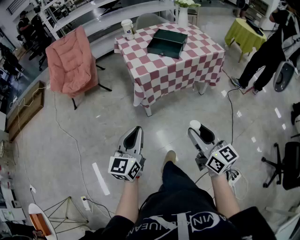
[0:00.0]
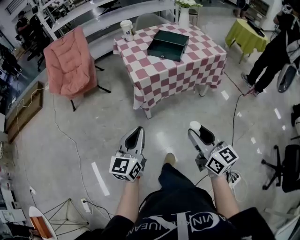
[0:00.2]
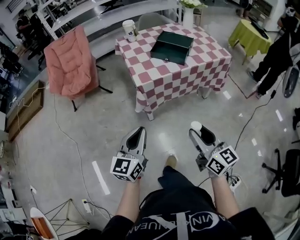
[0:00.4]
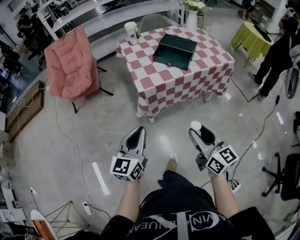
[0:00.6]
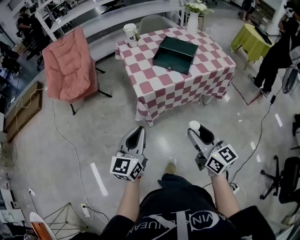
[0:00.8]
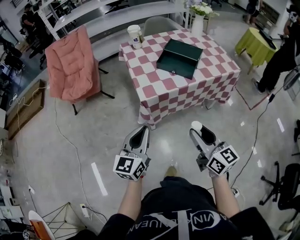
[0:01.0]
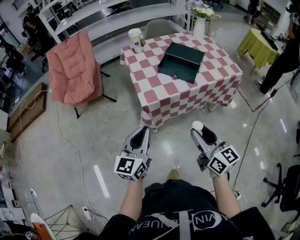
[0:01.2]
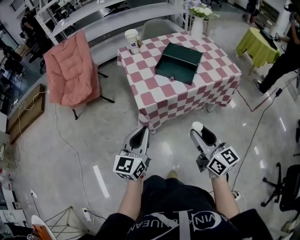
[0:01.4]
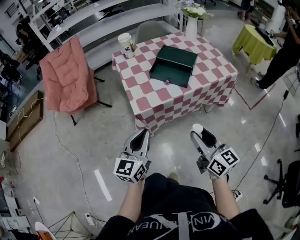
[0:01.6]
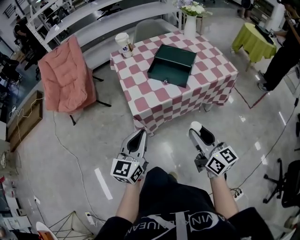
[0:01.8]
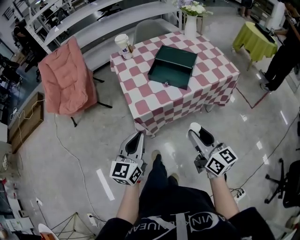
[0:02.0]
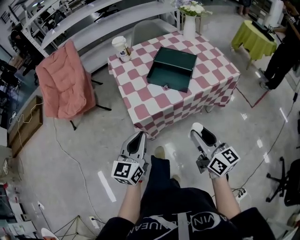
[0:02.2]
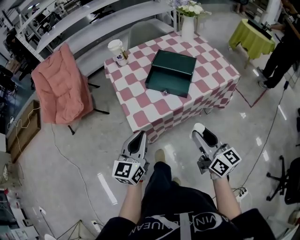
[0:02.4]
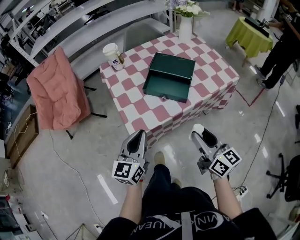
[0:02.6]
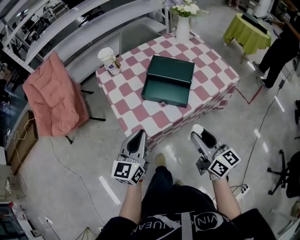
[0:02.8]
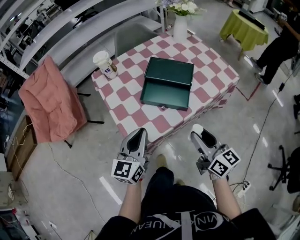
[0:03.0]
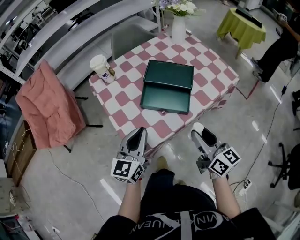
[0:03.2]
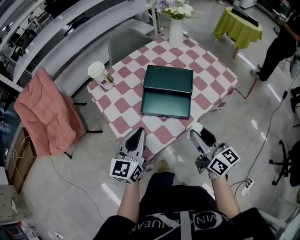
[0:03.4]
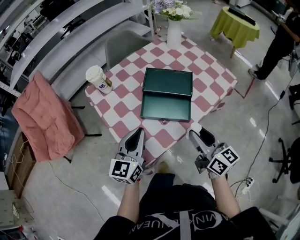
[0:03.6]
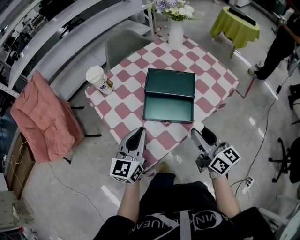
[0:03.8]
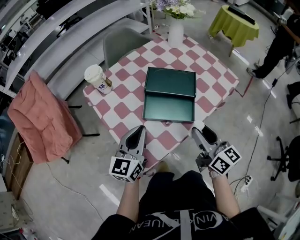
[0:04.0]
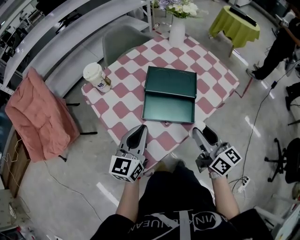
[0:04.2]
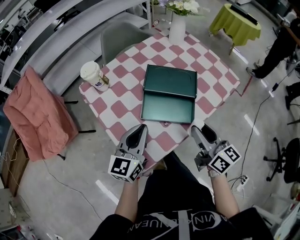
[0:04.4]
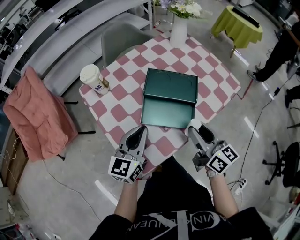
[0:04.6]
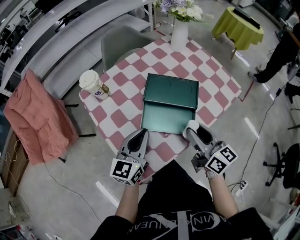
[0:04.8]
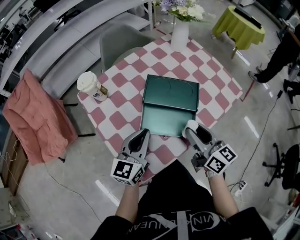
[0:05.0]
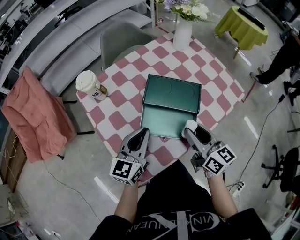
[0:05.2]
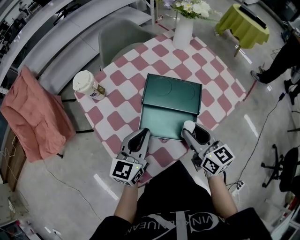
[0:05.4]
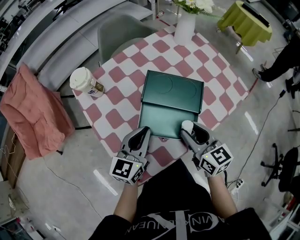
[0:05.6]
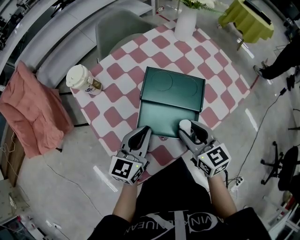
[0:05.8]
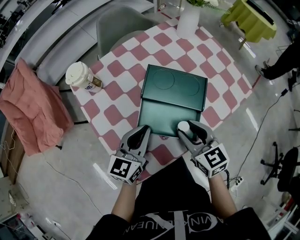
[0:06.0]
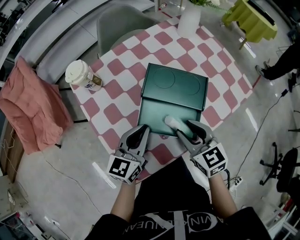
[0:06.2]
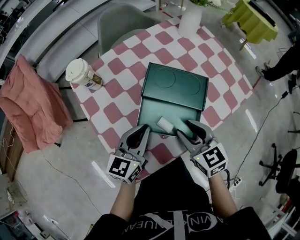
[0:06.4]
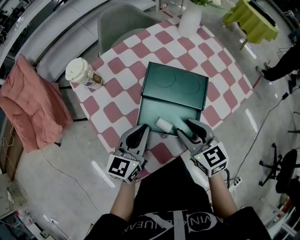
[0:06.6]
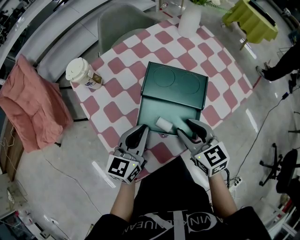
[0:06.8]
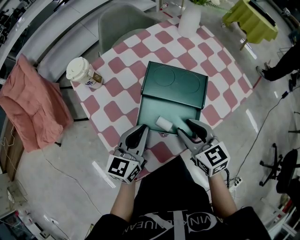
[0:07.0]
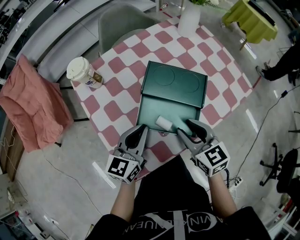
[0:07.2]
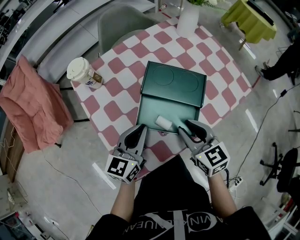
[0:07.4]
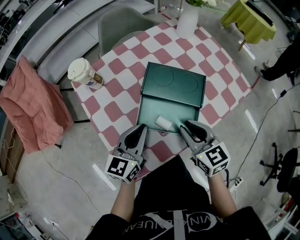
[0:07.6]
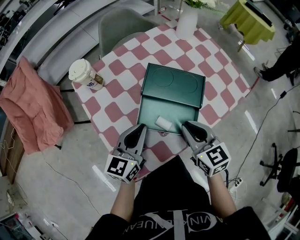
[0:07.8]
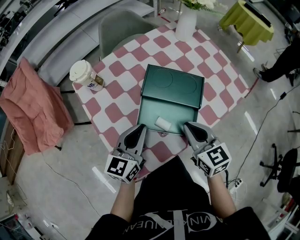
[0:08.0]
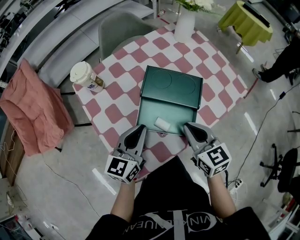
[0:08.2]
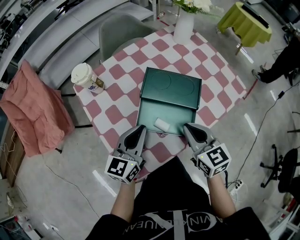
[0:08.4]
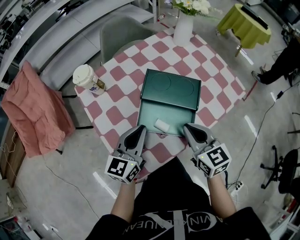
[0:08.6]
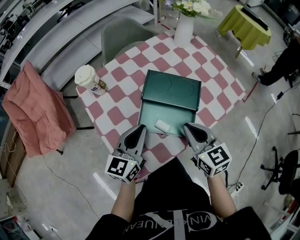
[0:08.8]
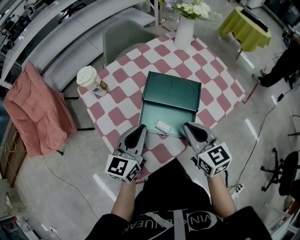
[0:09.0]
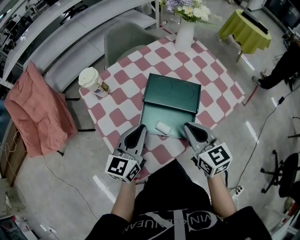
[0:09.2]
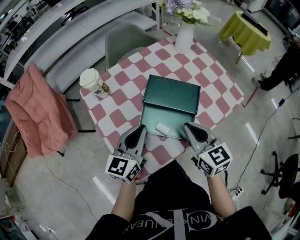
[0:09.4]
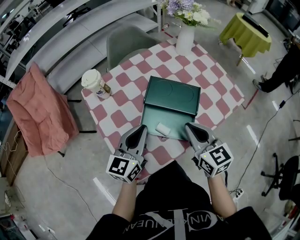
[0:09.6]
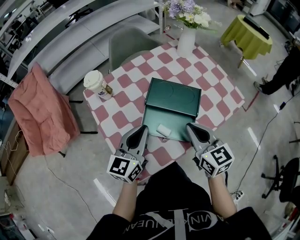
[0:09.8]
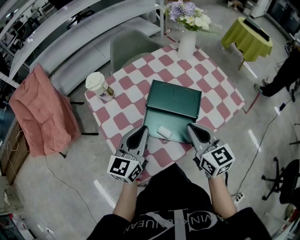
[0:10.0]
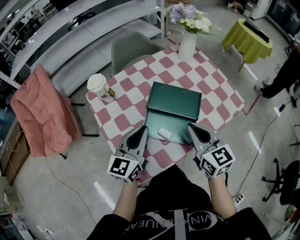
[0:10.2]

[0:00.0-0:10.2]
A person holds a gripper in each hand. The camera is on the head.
0:00.0 to 0:01.4: The grippers both shift forward by some 20 cm.
0:01.4 to 0:03.0: The two grippers go about 20 cm forward.
0:03.0 to 0:04.4: The two grippers go roughly 10 cm forward.
0:04.4 to 0:05.8: The left gripper moves forward, approximately 5 cm. The right gripper travels forward and downward by roughly 10 cm, and turns by about 30 degrees.
0:05.8 to 0:07.2: There are only small adjustments of the grippers.
0:07.2 to 0:08.8: The right gripper closes up.
0:08.8 to 0:10.2: The right gripper goes roughly 5 cm upward.

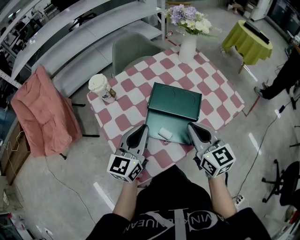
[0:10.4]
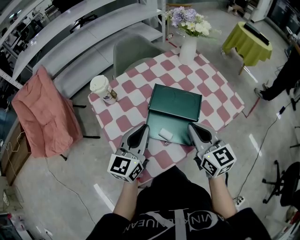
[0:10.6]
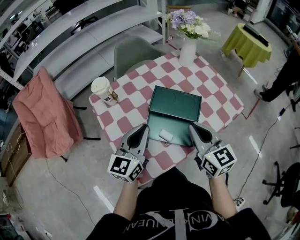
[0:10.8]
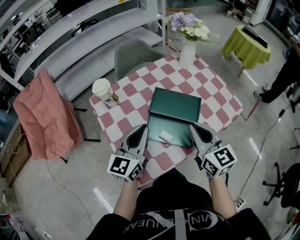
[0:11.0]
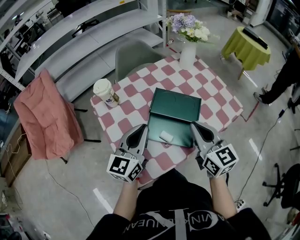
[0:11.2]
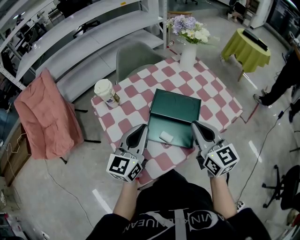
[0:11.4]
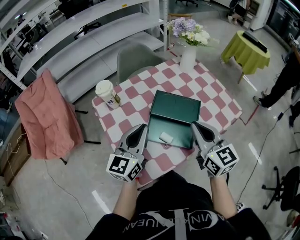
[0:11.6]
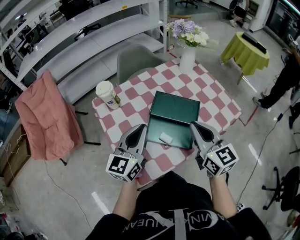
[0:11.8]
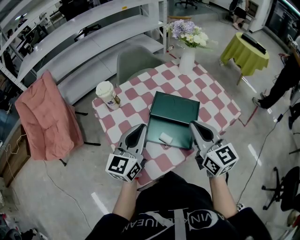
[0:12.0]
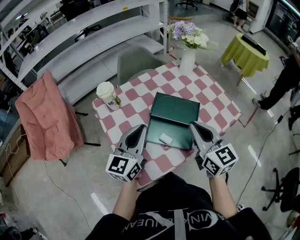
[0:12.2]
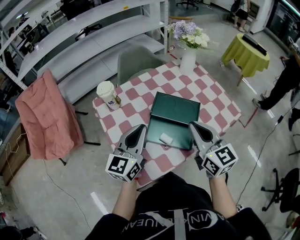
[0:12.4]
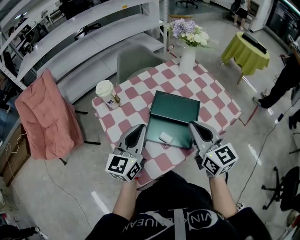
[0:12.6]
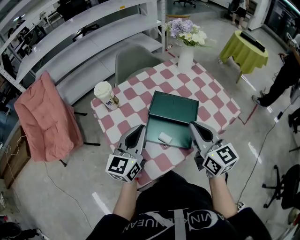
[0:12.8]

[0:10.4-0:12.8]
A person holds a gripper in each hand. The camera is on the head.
0:10.4 to 0:11.6: The grippers move only a little.
0:11.6 to 0:12.8: The two grippers keep their place.

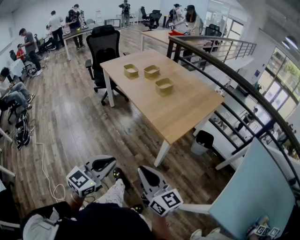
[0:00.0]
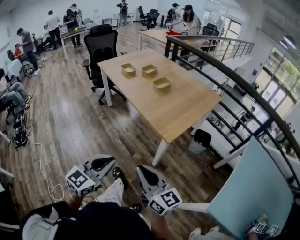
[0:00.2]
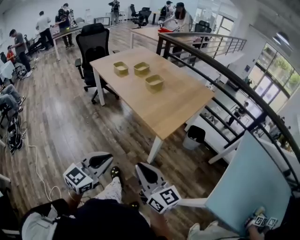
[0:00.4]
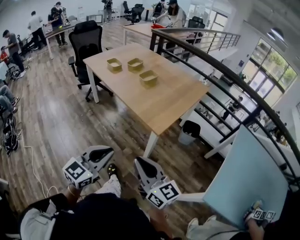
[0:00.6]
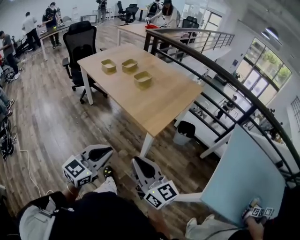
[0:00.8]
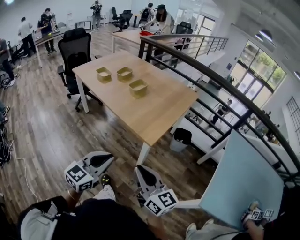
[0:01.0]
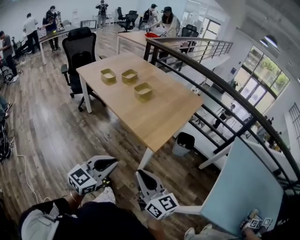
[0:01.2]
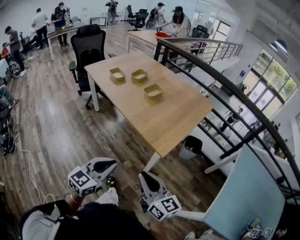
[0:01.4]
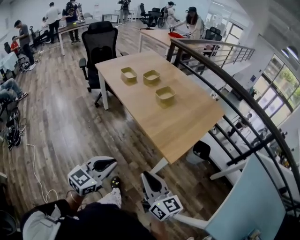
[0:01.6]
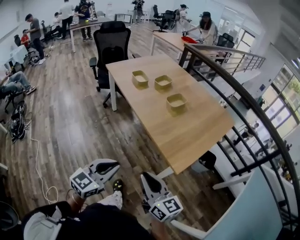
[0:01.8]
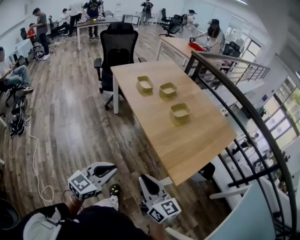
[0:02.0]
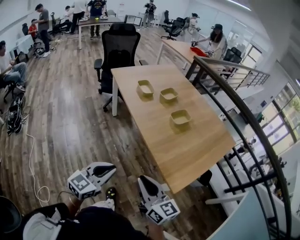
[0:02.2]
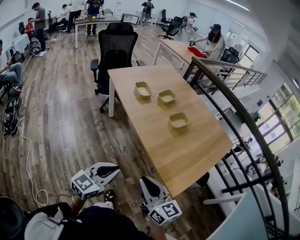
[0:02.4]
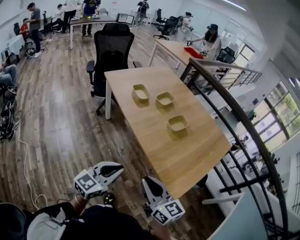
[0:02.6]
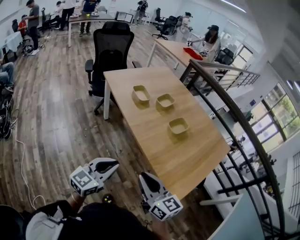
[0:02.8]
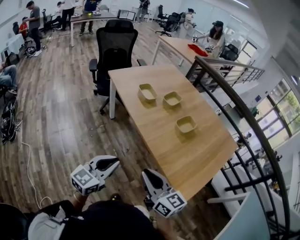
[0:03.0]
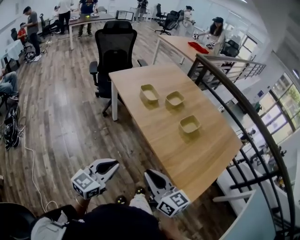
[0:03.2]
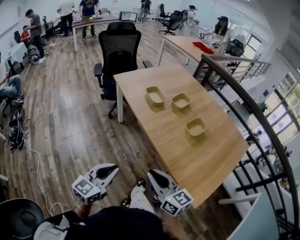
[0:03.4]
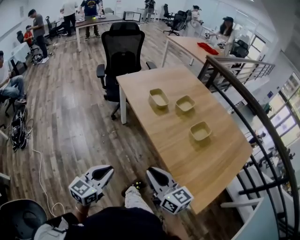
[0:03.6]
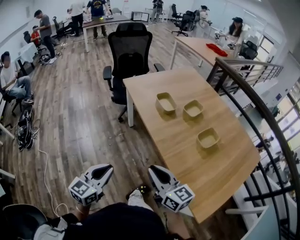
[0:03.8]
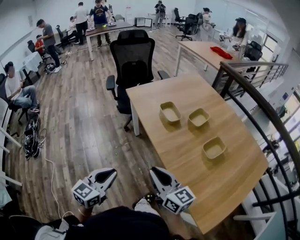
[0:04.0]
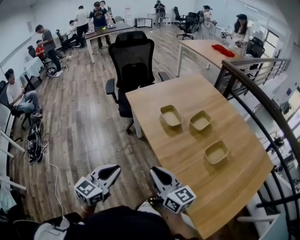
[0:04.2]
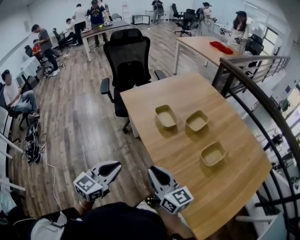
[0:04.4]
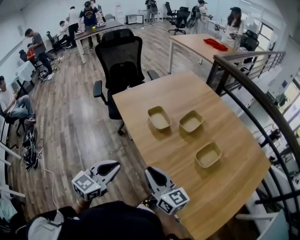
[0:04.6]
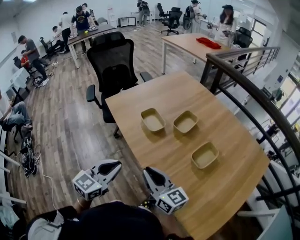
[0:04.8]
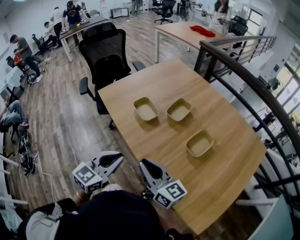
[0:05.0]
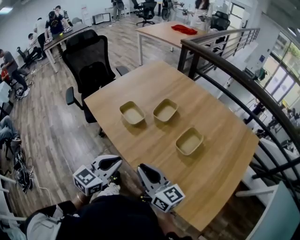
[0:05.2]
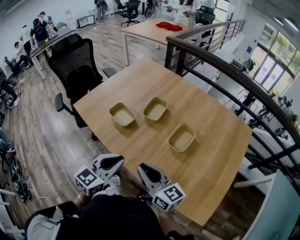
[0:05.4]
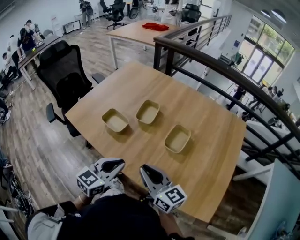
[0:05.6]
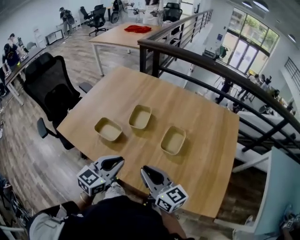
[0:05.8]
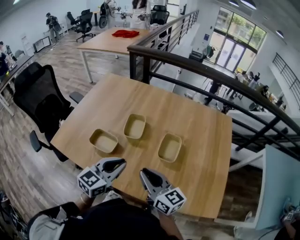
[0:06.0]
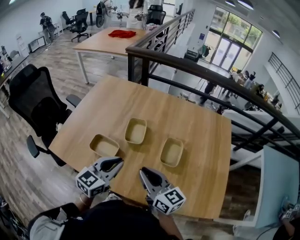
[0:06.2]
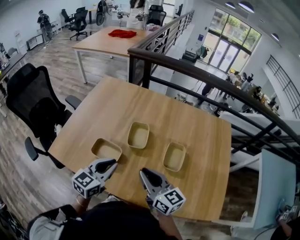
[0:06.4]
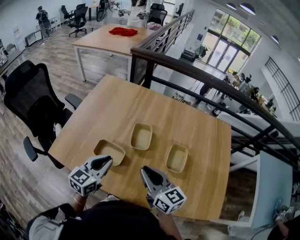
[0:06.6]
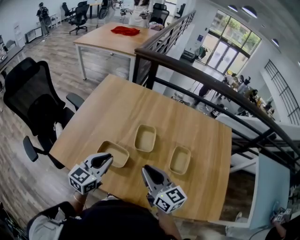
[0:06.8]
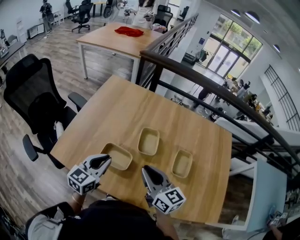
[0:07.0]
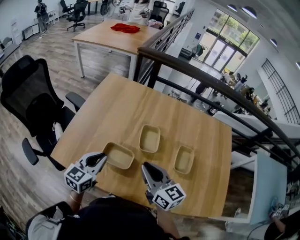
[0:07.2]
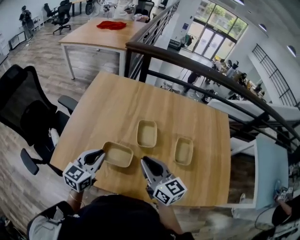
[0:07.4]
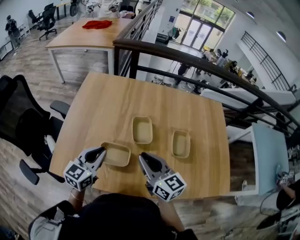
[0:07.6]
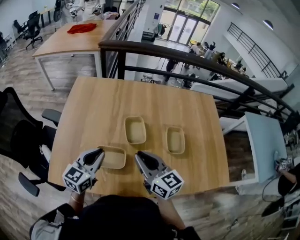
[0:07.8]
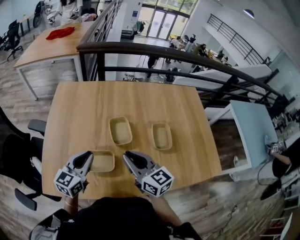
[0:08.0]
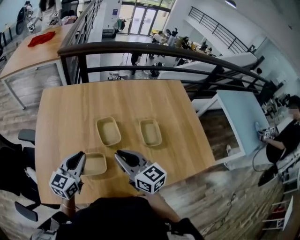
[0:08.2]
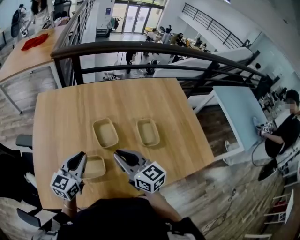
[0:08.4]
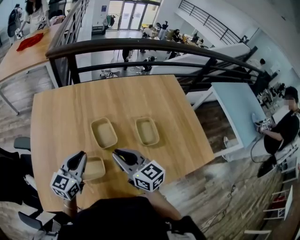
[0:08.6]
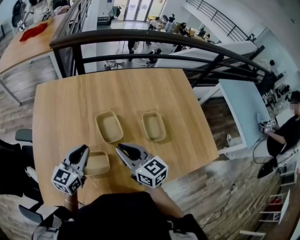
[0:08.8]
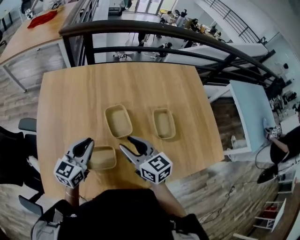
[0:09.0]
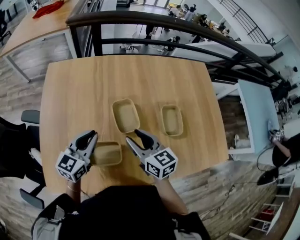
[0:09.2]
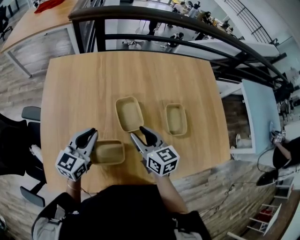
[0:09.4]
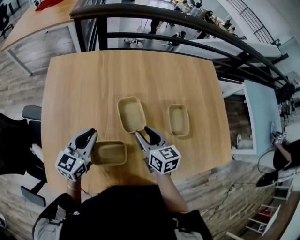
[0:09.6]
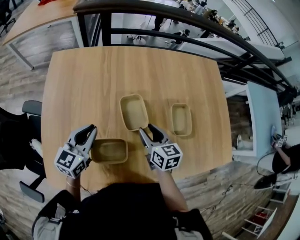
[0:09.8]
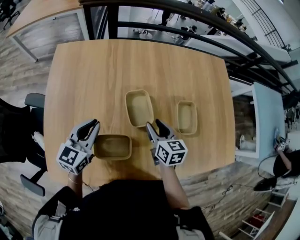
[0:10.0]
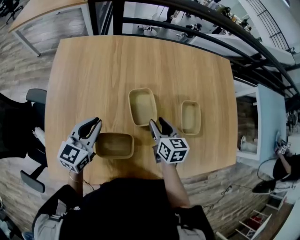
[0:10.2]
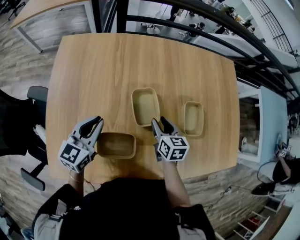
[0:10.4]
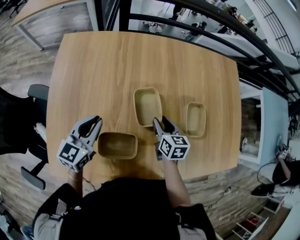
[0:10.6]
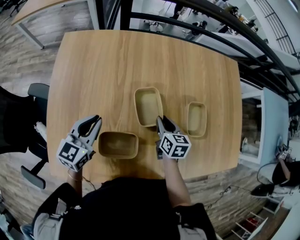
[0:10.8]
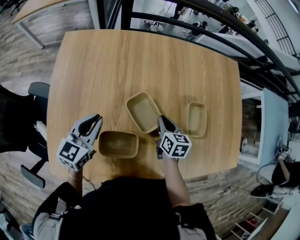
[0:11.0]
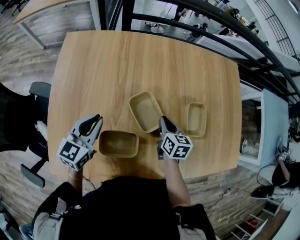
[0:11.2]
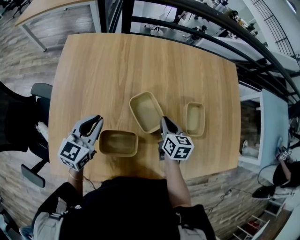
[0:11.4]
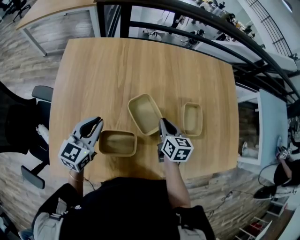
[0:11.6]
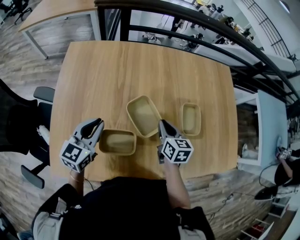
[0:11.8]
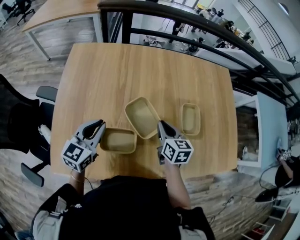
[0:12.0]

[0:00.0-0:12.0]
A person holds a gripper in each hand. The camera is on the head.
0:00.0 to 0:01.6: Both grippers travel together forward, approximately 15 cm.
0:01.6 to 0:03.0: The two grippers go about 25 cm forward and to the left.
0:03.0 to 0:04.4: Both grippers move forward, about 25 cm.
0:04.4 to 0:06.0: The left gripper ends up approximately 30 cm from where it was, and rotates roughly 50 degrees, while the right gripper moves some 20 cm, and swivels about 40 degrees.
0:06.0 to 0:07.6: Both grippers move to the left and forward, approximately 25 cm.
0:07.6 to 0:09.0: The left gripper shifts roughly 10 cm forward, while the right gripper heads forward and downward, covering some 10 cm, and opens.
0:09.0 to 0:10.4: The left gripper travels to the left by approximately 5 cm; the right gripper heads downward and forward, covering about 15 cm, and changes its angle by approximately 30 degrees.
0:10.4 to 0:12.0: The right gripper shifts by some 5 cm, and closes, while the left gripper moves approximately 5 cm.
